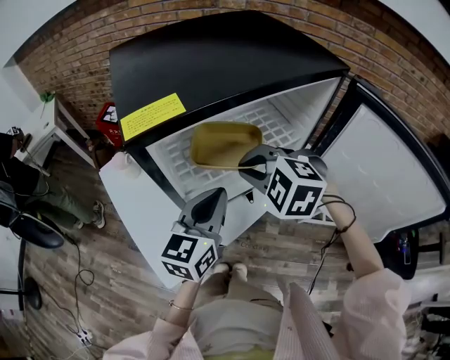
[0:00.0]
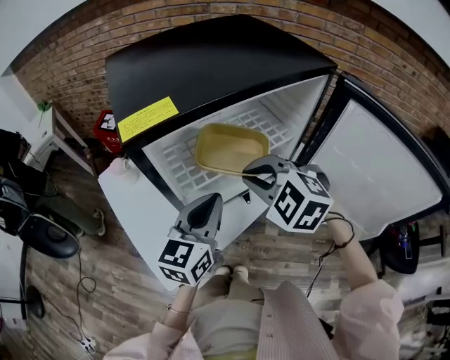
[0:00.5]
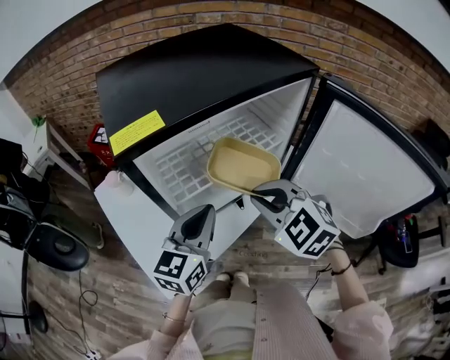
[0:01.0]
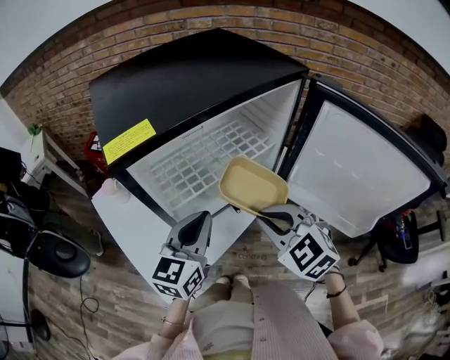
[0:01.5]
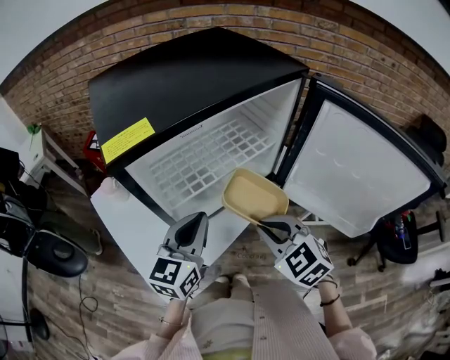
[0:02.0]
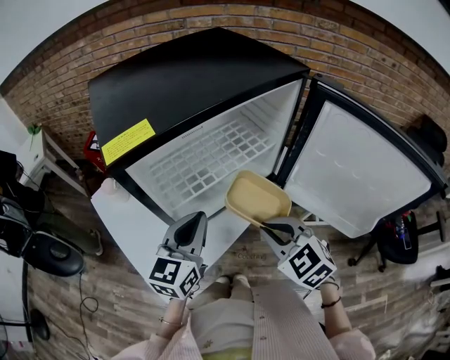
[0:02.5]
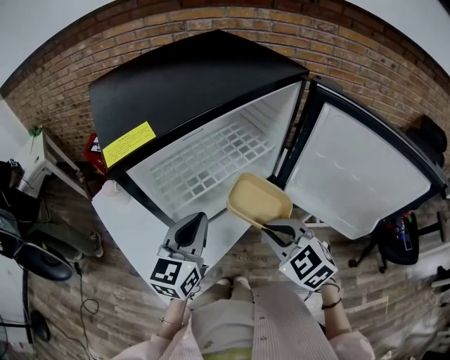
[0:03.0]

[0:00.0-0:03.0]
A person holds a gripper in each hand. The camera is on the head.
0:00.0 to 0:01.5: The right gripper moves backward and to the right, roughly 15 cm, and turns by about 30 degrees.
0:01.5 to 0:03.0: The grippers make only small movements.

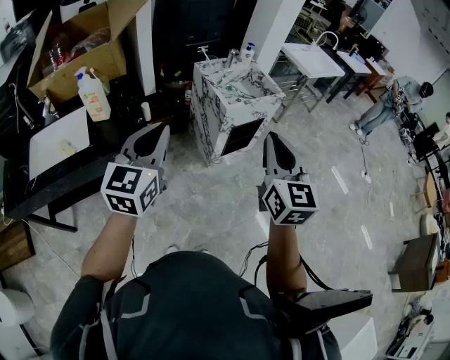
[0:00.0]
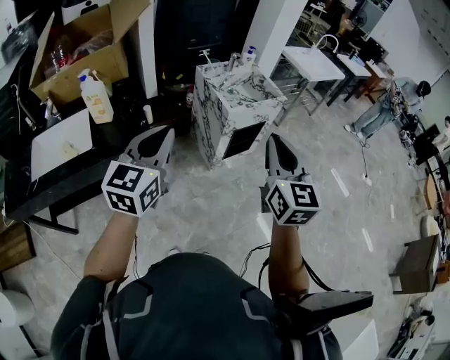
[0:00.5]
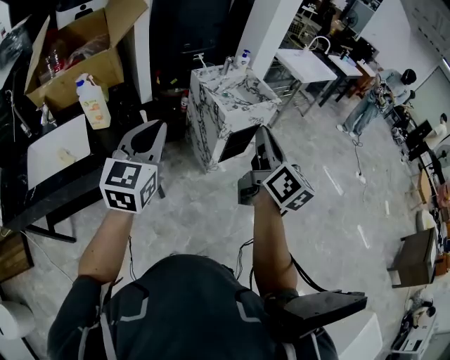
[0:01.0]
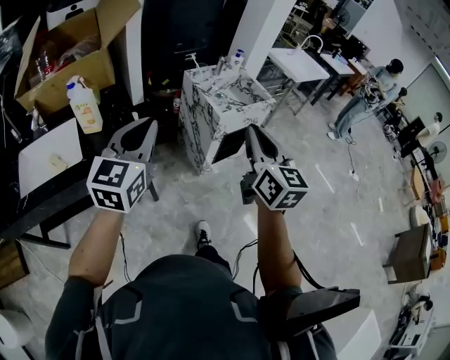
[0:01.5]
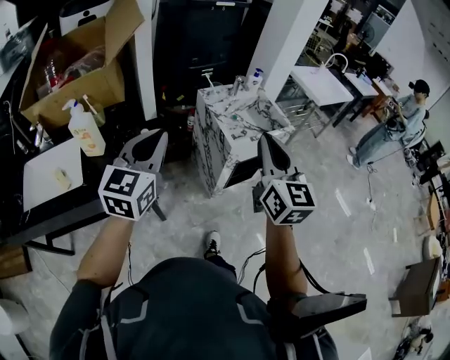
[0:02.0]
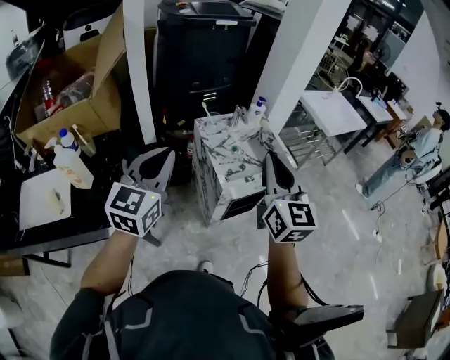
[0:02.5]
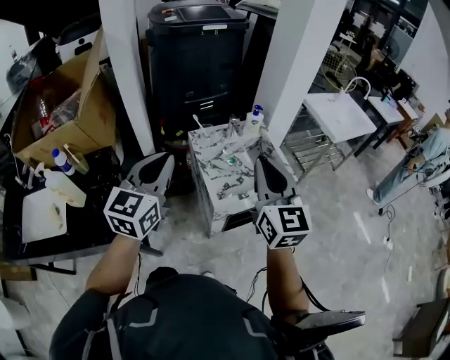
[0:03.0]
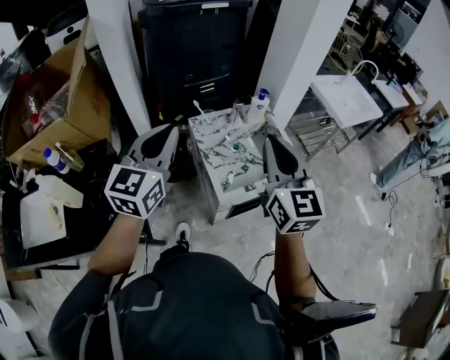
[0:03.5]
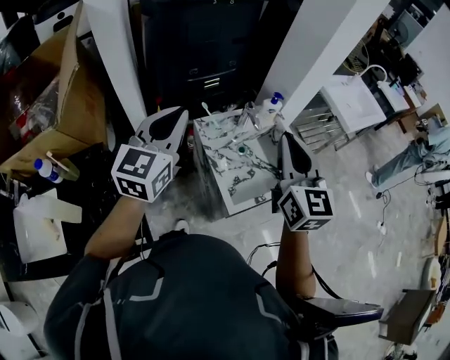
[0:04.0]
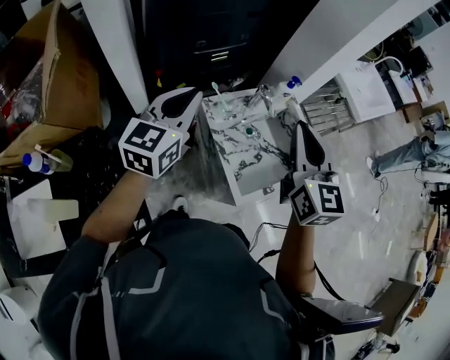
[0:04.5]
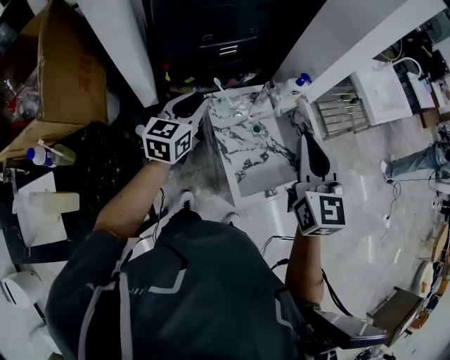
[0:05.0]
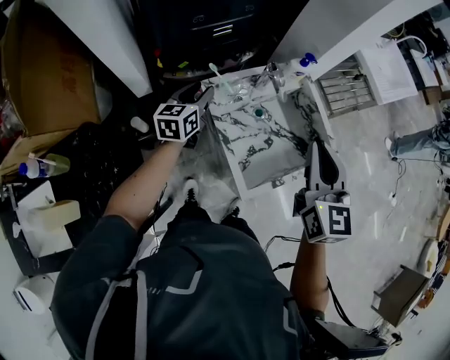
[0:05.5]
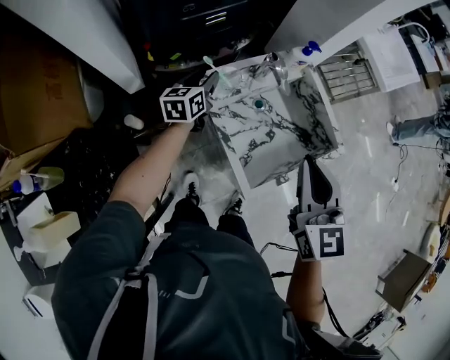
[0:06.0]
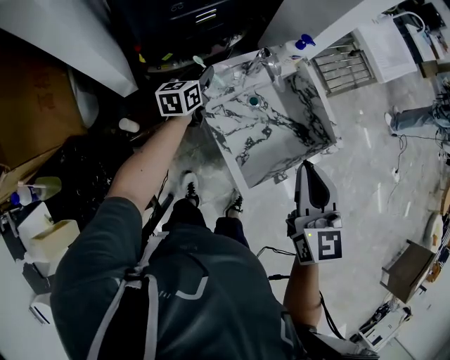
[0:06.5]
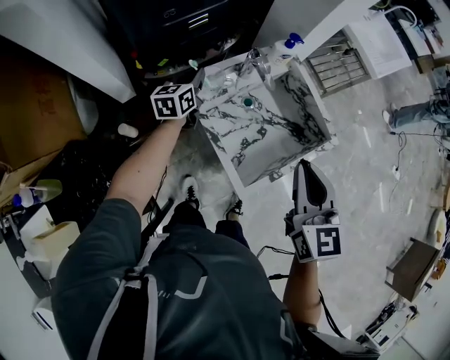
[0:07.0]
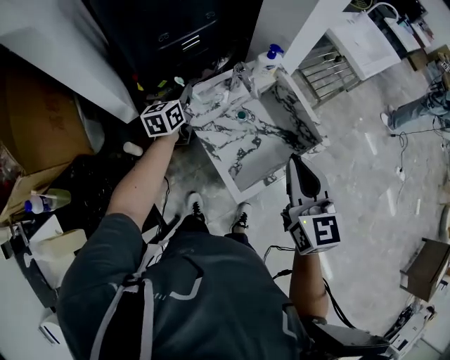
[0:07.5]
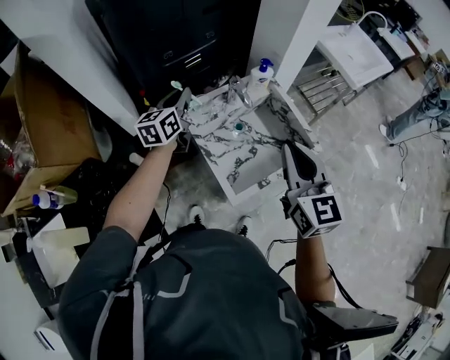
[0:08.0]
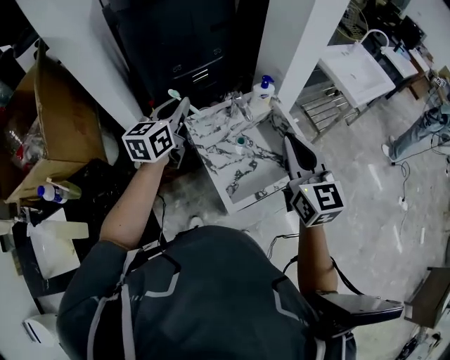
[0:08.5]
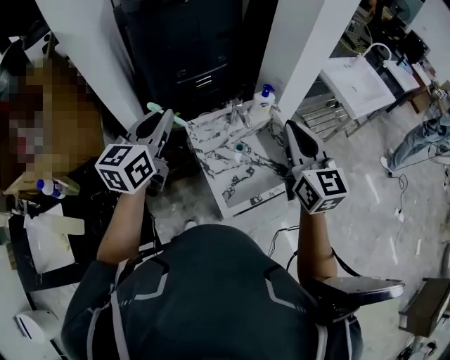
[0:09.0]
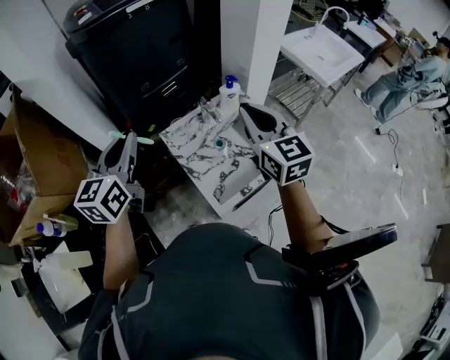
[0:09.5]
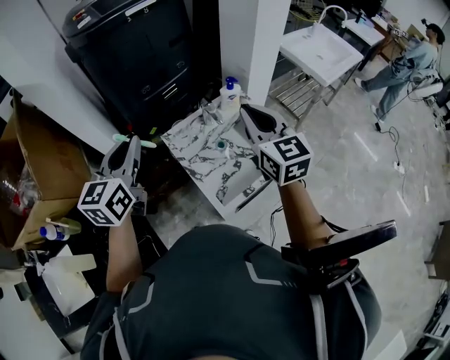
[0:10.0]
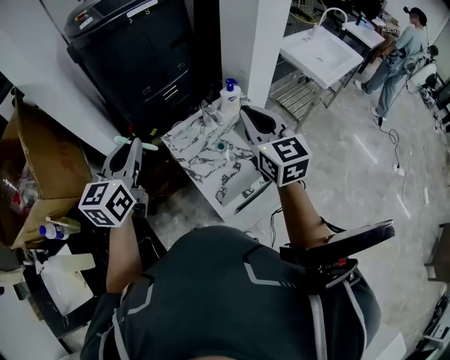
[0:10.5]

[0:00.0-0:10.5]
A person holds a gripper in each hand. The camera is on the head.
0:00.0 to 0:02.0: The grippers both shift forward by some 15 cm.
0:02.0 to 0:04.0: Both grippers are carried forward, some 40 cm.
0:04.0 to 0:06.5: The right gripper moves downward, about 15 cm, while the left gripper shifts some 50 cm downward and forward, changes its angle by roughly 40 degrees, and opens up.
0:06.5 to 0:08.5: The right gripper heads upward and to the right, covering approximately 10 cm. Meanwhile the left gripper heads upward and backward, covering approximately 30 cm.
0:08.5 to 0:10.5: The left gripper travels backward and upward by about 15 cm.

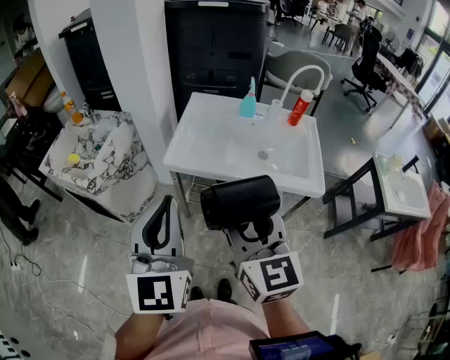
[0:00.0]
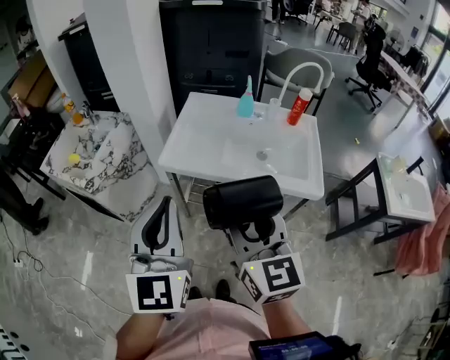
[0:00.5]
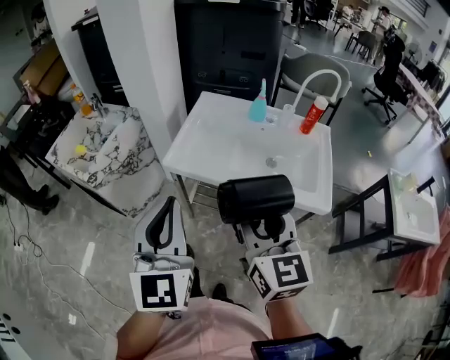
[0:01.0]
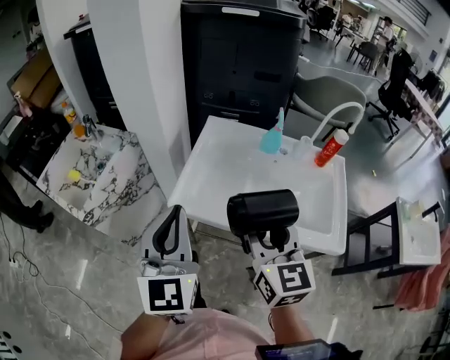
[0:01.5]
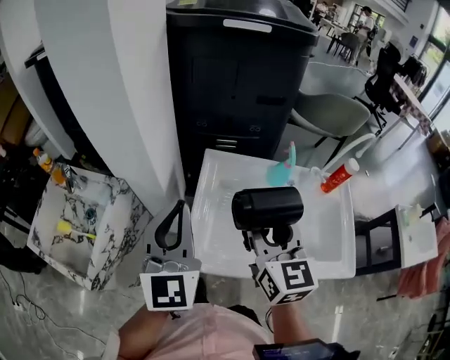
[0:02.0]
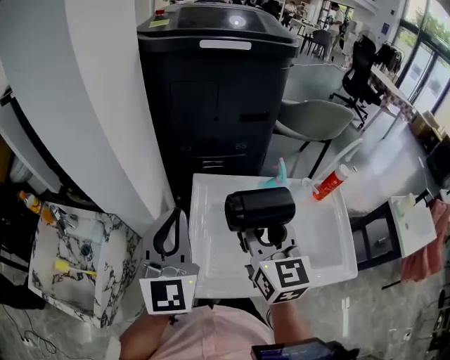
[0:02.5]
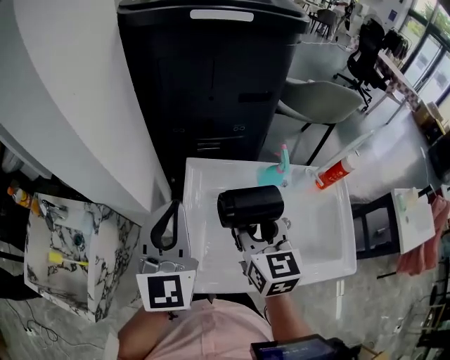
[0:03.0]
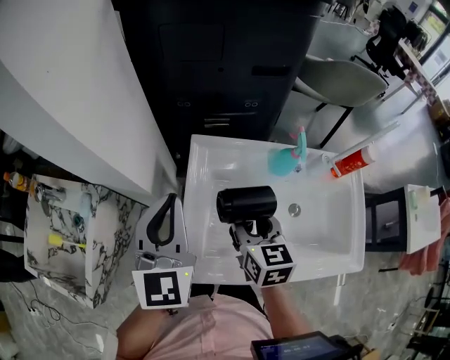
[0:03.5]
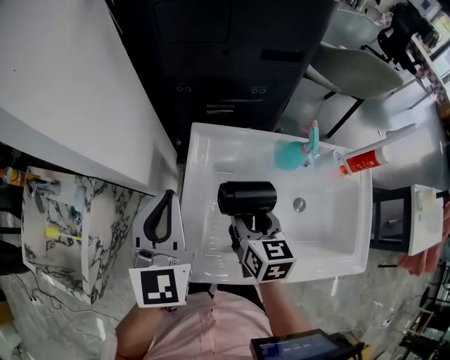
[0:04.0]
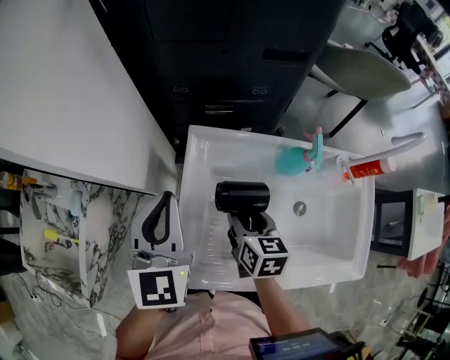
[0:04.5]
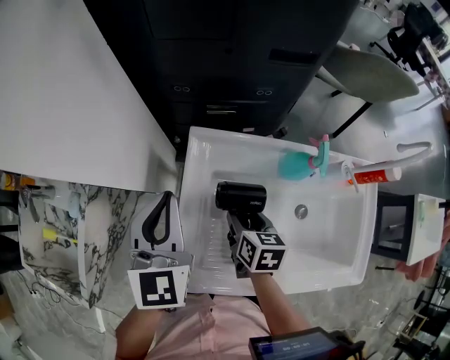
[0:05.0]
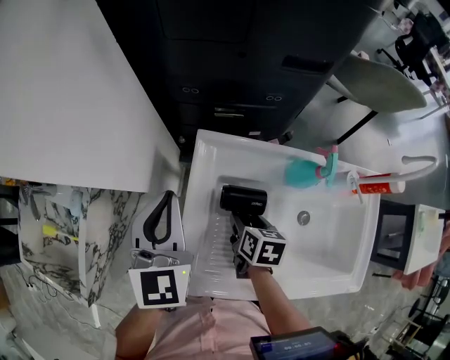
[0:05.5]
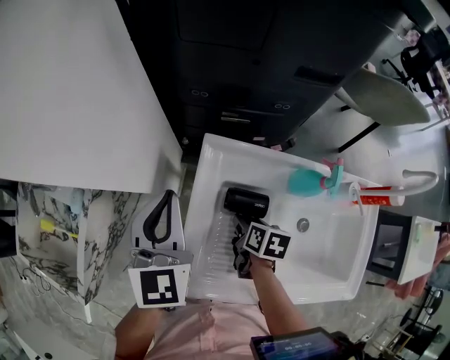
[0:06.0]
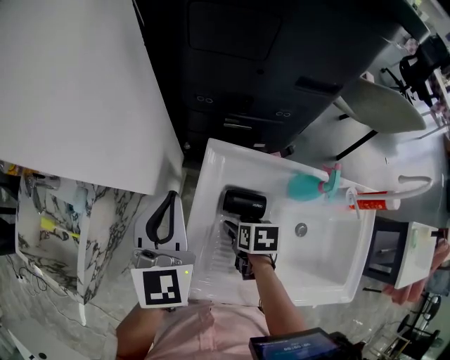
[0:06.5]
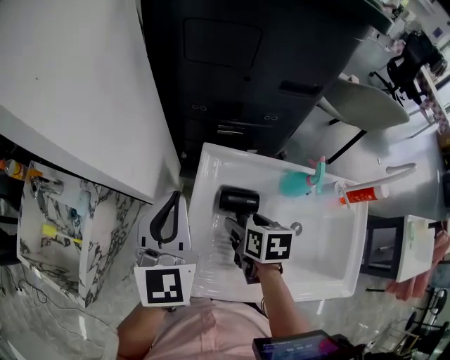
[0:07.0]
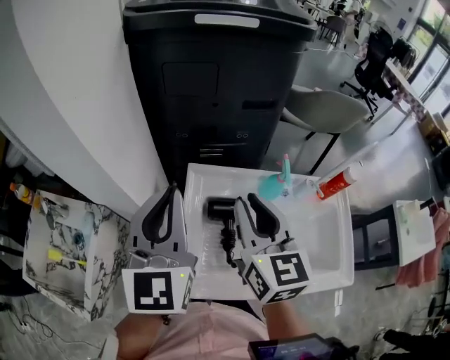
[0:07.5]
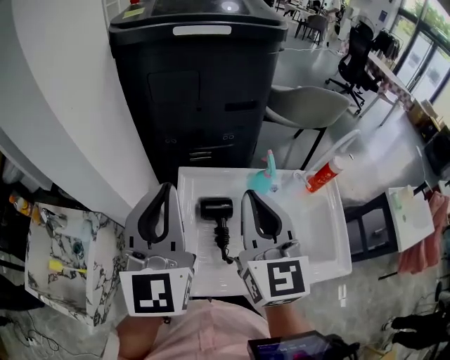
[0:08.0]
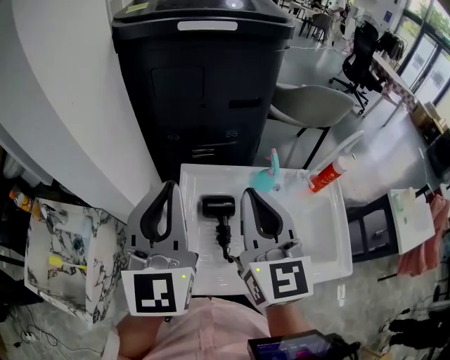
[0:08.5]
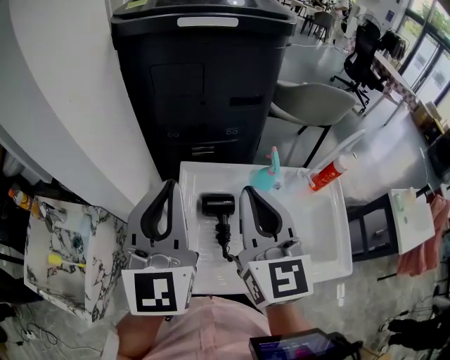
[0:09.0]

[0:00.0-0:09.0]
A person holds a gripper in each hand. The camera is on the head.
0:00.0 to 0:02.0: Both grippers move forward, approximately 40 cm.
0:02.0 to 0:04.5: The right gripper goes some 25 cm downward and forward, and turns by some 40 degrees, while the left gripper shifts approximately 20 cm forward and downward.
0:04.5 to 0:07.0: The right gripper moves roughly 10 cm downward and comes back, and opens its fingers.
0:07.0 to 0:09.0: The right gripper moves upward, some 30 cm, tips its fingers upward by about 50 degrees, and closes. The left gripper heads upward and backward, covering approximately 15 cm.

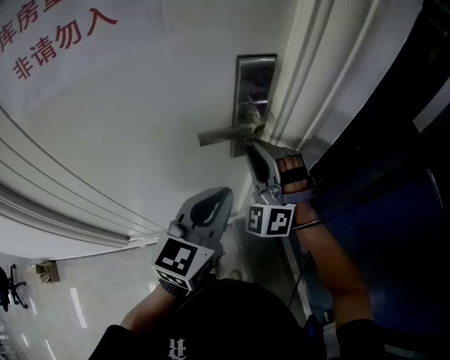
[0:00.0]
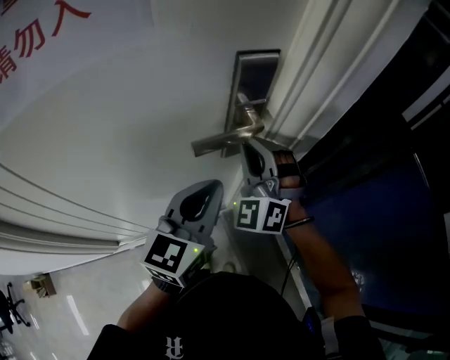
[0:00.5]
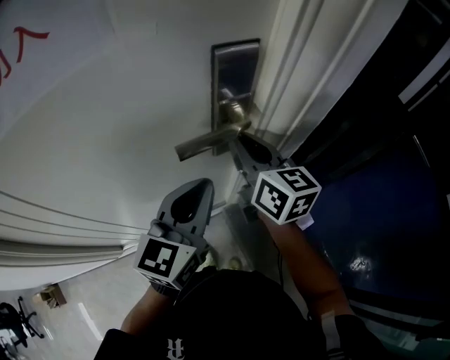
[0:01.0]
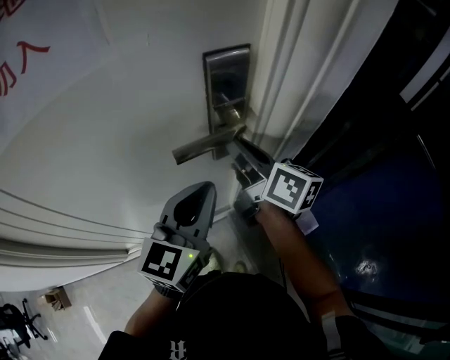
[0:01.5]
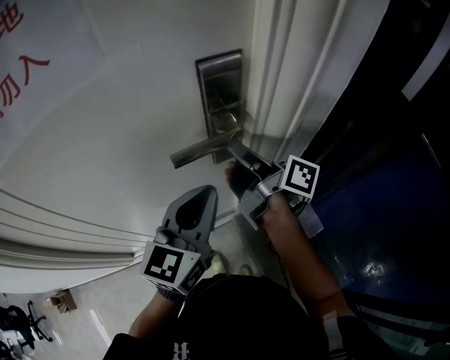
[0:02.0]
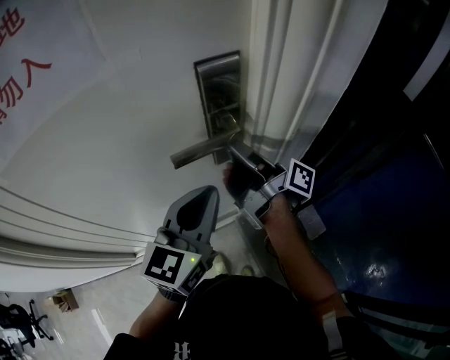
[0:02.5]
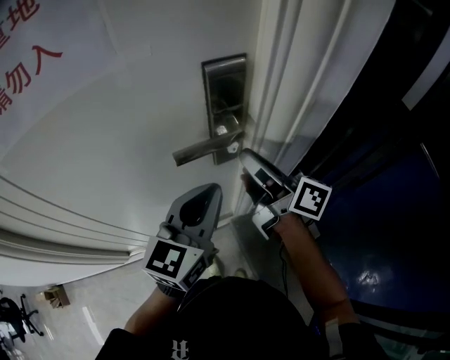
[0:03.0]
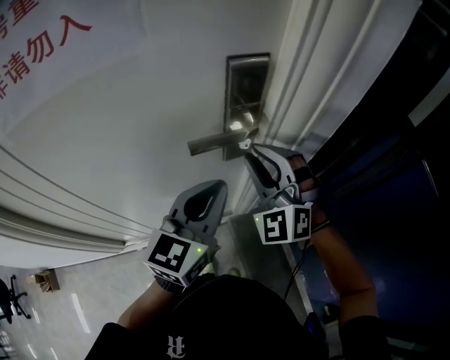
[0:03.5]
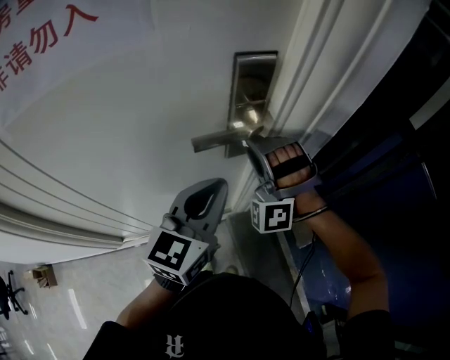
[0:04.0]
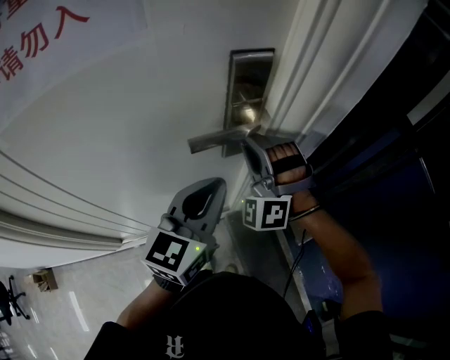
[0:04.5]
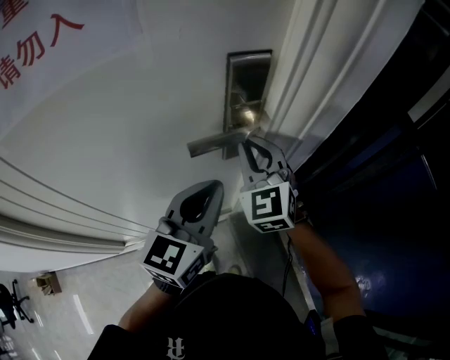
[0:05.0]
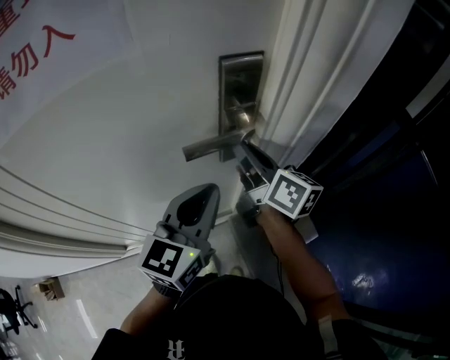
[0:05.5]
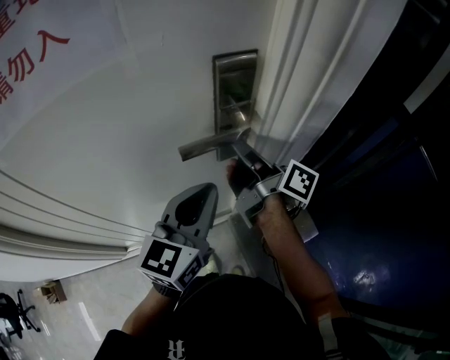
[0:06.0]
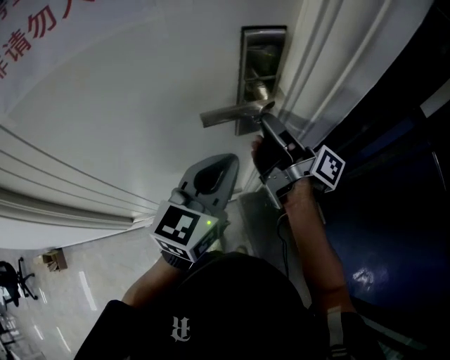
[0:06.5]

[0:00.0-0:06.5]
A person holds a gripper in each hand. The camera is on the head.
0:00.0 to 0:02.0: The right gripper rolls clockwise, seen from behind, by about 150 degrees.
0:02.0 to 0:04.5: The right gripper twists about 150 degrees counterclockwise, seen from behind.
0:04.5 to 0:06.5: The right gripper rolls clockwise, seen from behind, by roughly 160 degrees.
